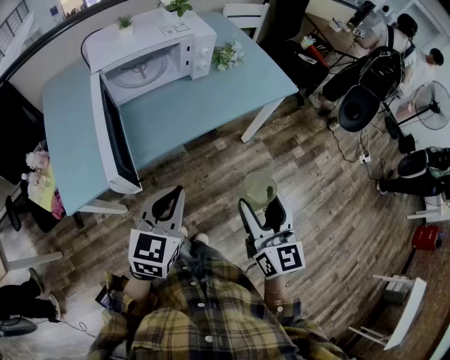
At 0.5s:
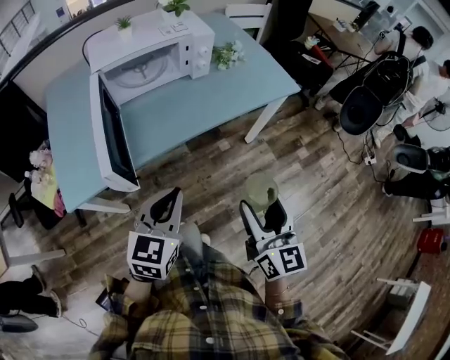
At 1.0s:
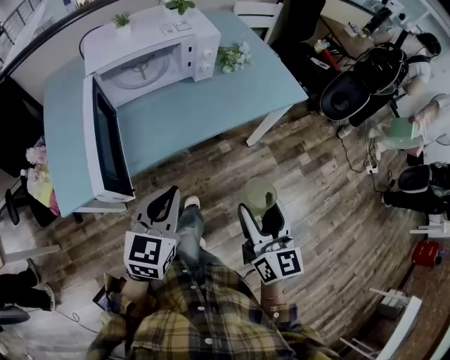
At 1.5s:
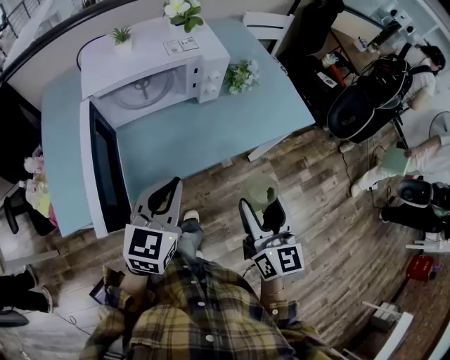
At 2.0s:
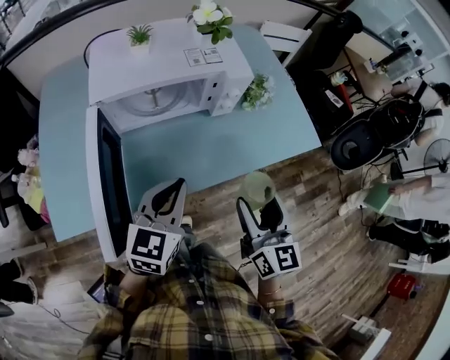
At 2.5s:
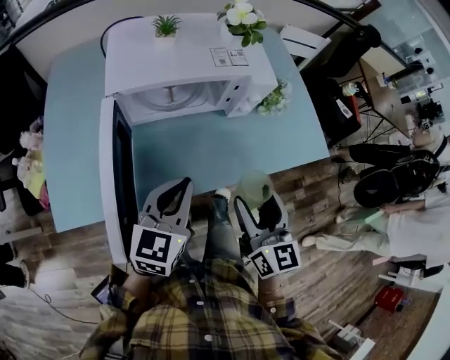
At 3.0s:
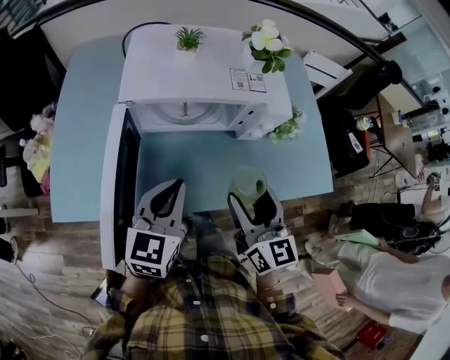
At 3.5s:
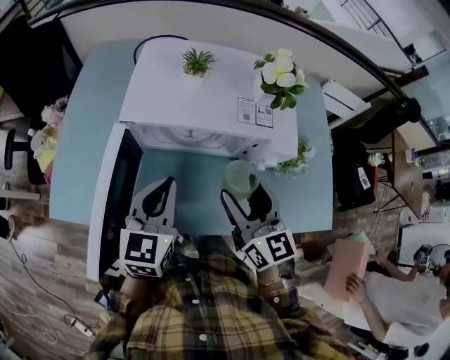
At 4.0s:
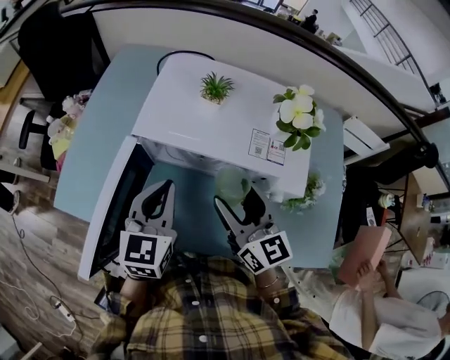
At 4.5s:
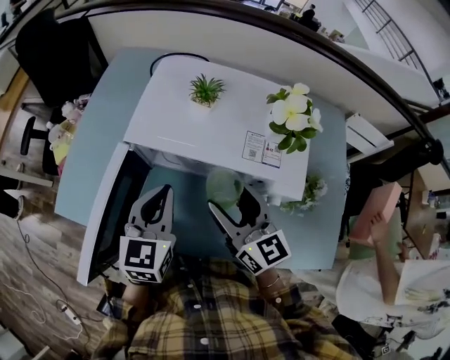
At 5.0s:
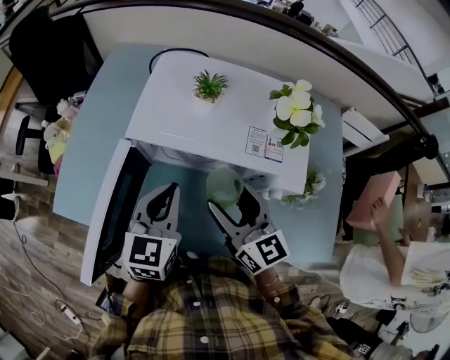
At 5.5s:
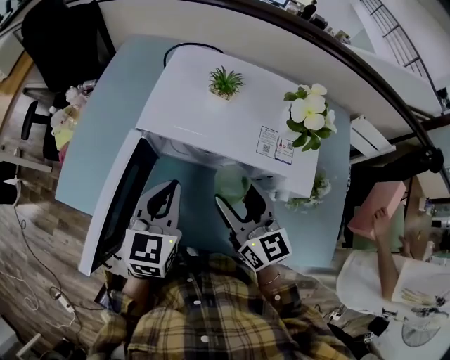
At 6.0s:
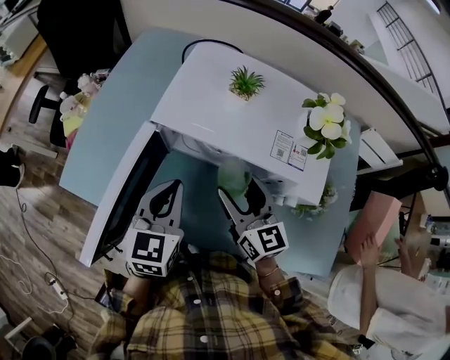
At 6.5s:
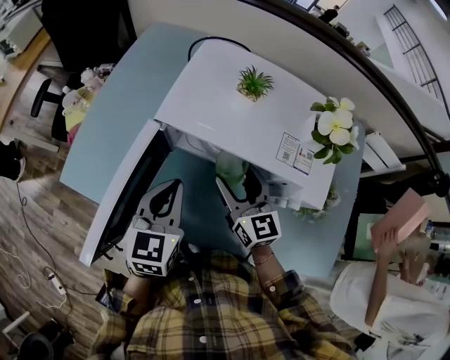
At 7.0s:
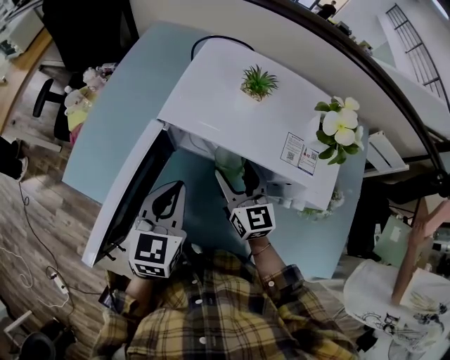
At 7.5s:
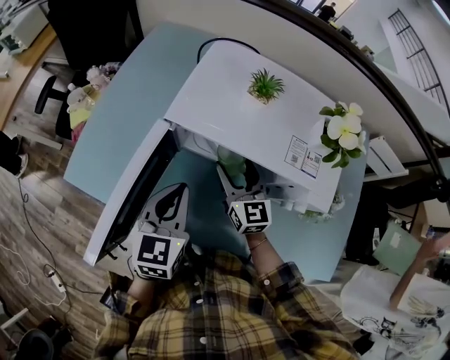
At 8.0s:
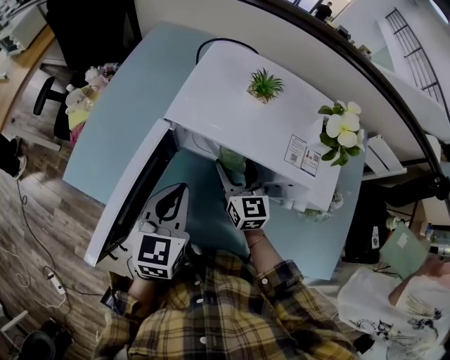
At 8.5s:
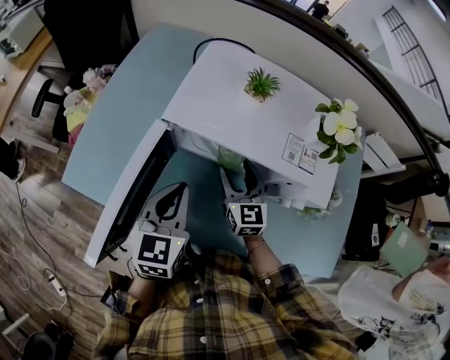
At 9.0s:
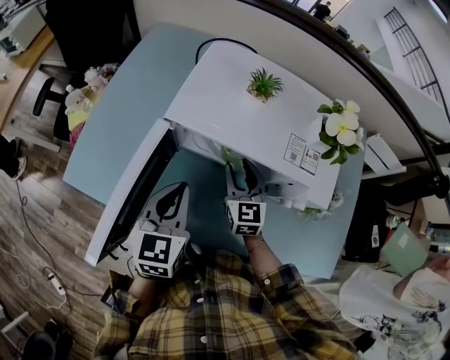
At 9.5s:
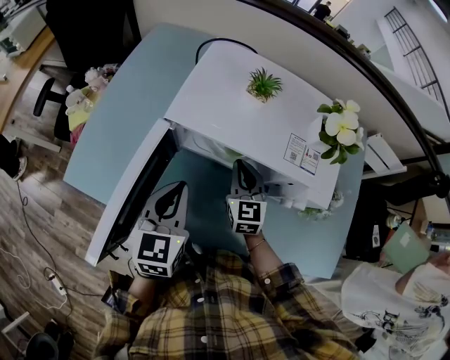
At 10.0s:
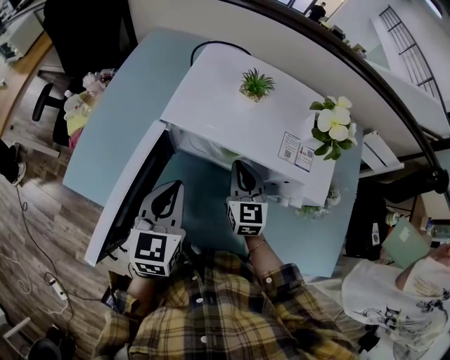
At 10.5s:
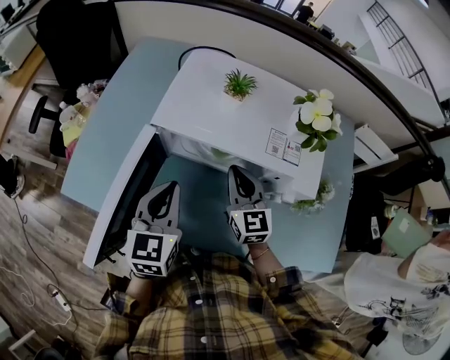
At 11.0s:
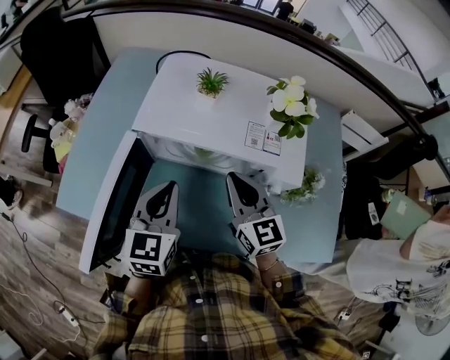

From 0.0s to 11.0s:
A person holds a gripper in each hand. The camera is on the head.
From 0.0s to 2.0s: The two grippers go approximately 20 cm forward.
From 2.0s to 3.5s: The right gripper moves roughly 20 cm, and rotates some 30 degrees; the left gripper moves about 15 cm, and changes its angle by roughly 30 degrees.
From 3.5s to 5.5s: The right gripper moves forward, roughly 5 cm.
From 5.5s to 7.5s: The right gripper travels downward and forward by some 15 cm.
From 7.5s to 9.0s: The right gripper closes up.
From 9.0s to 11.0s: The right gripper heads upward and backward, covering roughly 15 cm, and closes up.

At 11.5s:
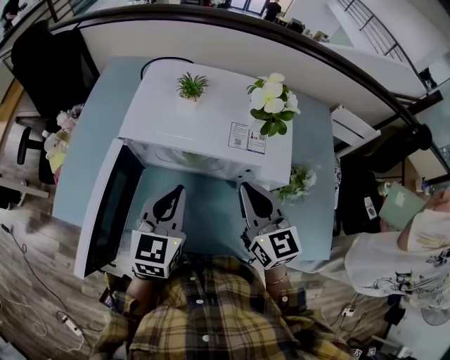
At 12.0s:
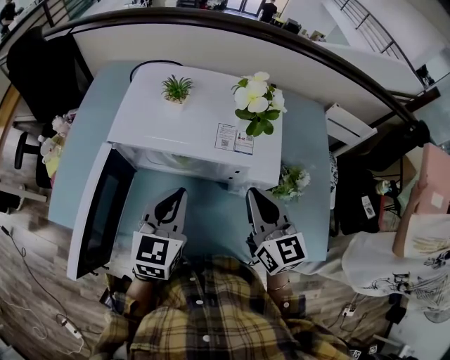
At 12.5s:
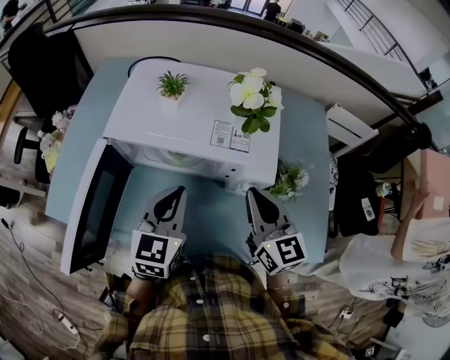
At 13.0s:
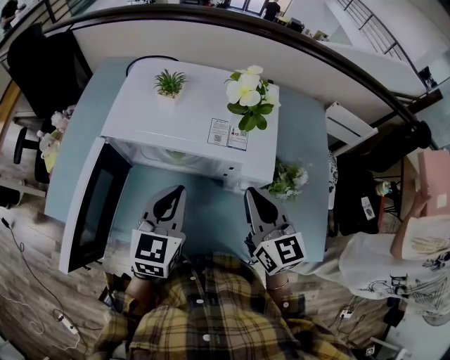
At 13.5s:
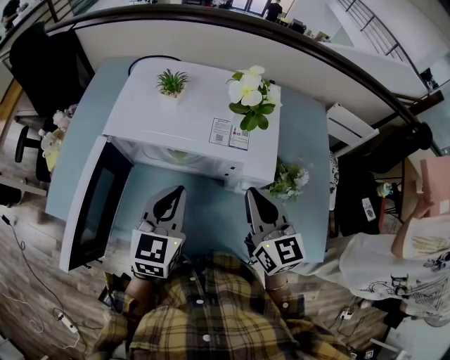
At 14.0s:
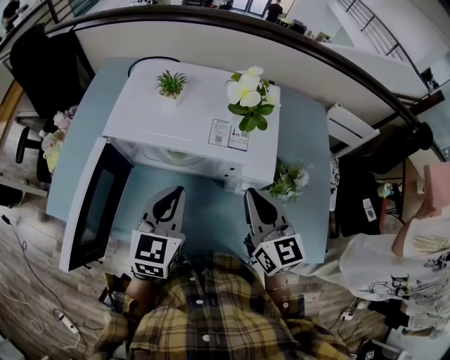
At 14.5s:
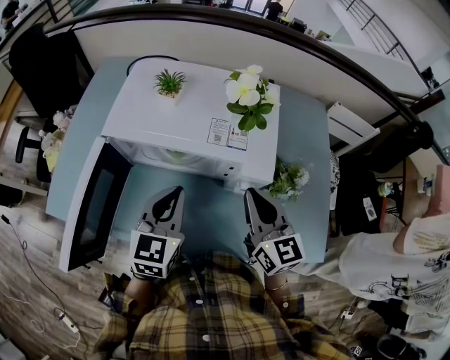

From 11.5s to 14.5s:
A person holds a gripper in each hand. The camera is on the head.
From 11.5s to 13.0s: Both grippers travel together to the right, about 5 cm.
From 13.0s to 14.5s: Both grippers stay put.

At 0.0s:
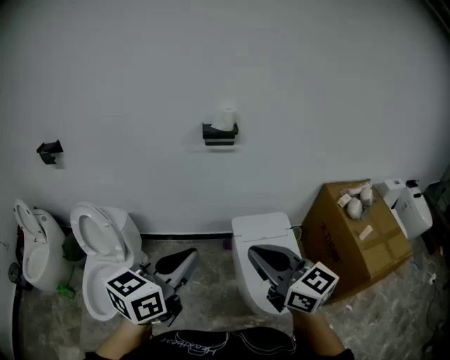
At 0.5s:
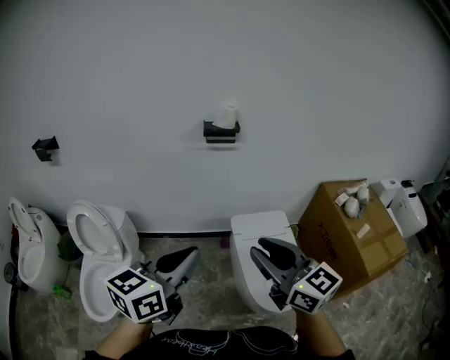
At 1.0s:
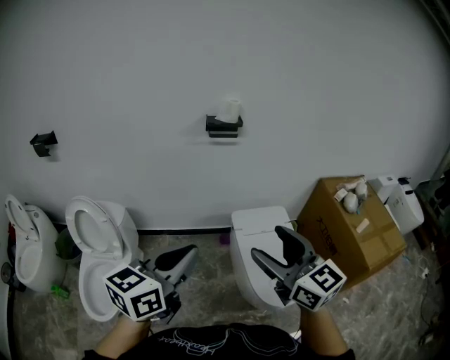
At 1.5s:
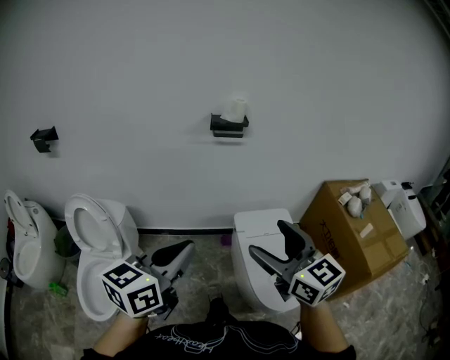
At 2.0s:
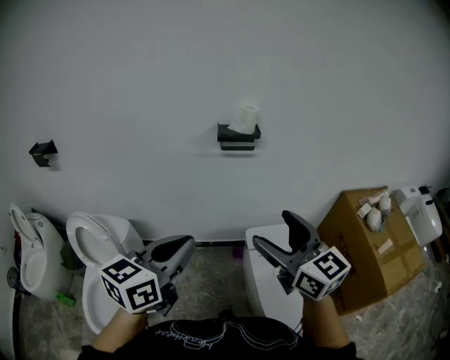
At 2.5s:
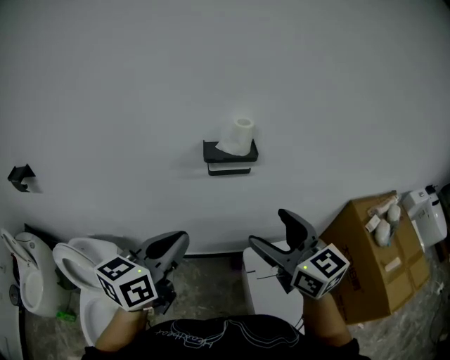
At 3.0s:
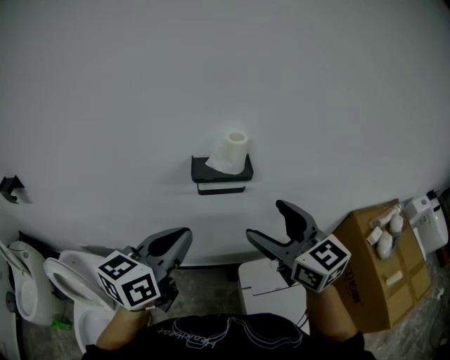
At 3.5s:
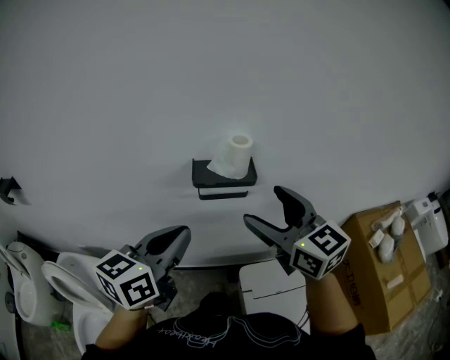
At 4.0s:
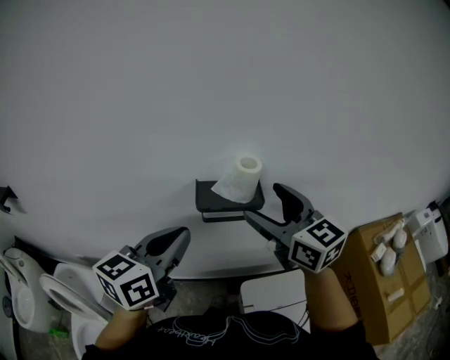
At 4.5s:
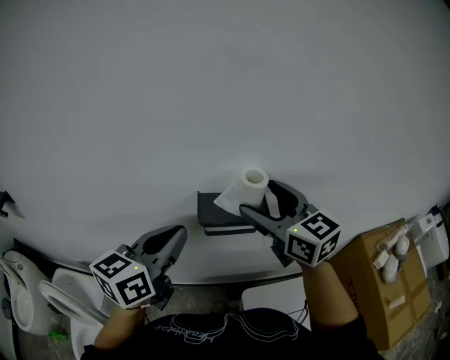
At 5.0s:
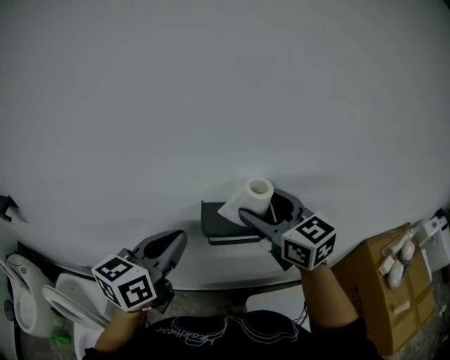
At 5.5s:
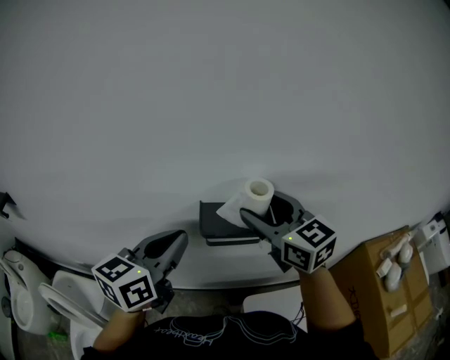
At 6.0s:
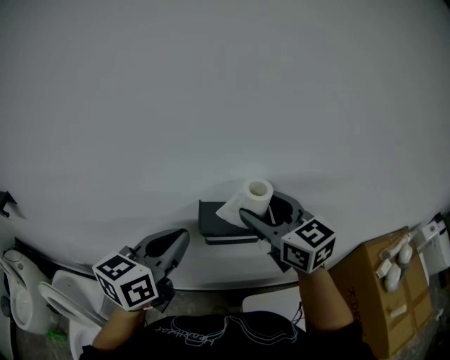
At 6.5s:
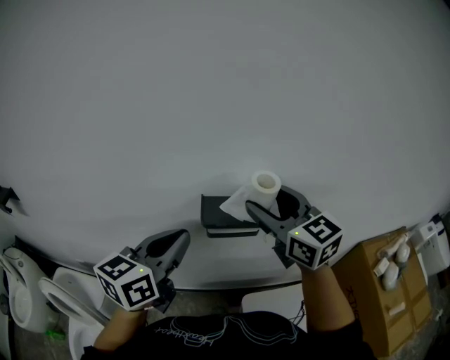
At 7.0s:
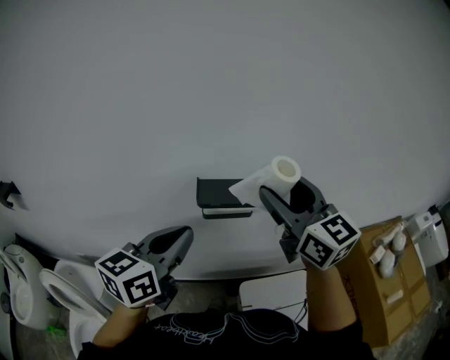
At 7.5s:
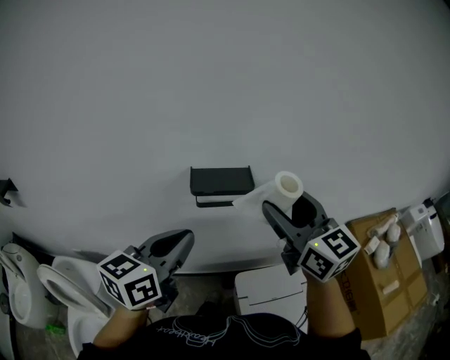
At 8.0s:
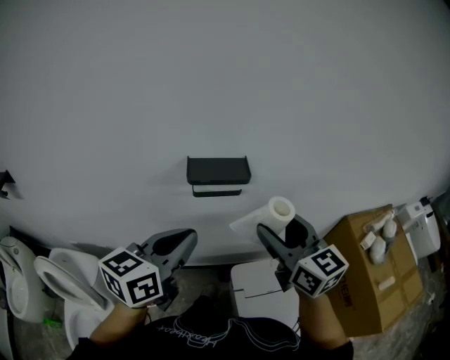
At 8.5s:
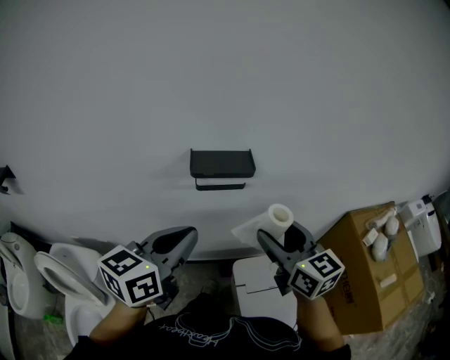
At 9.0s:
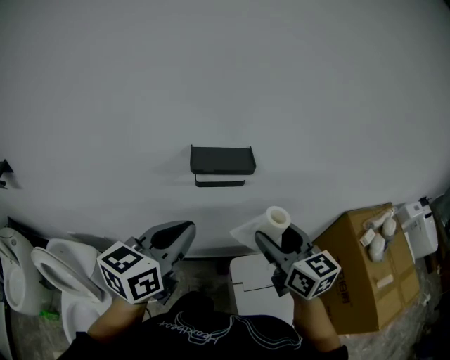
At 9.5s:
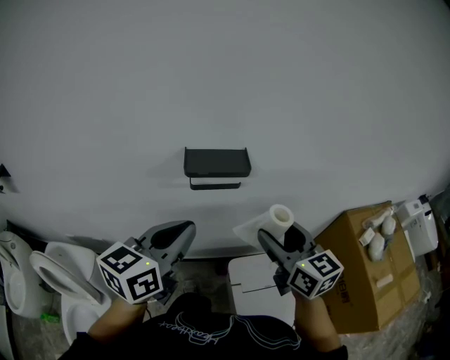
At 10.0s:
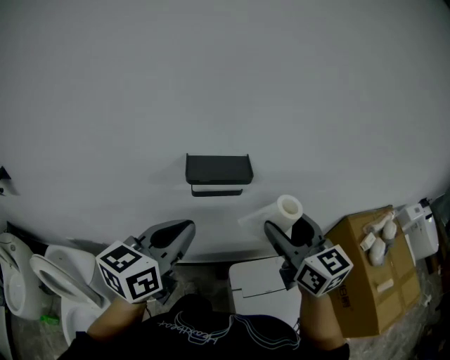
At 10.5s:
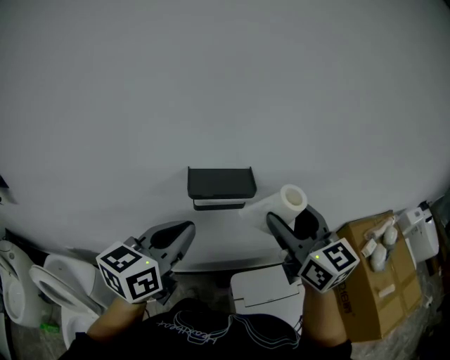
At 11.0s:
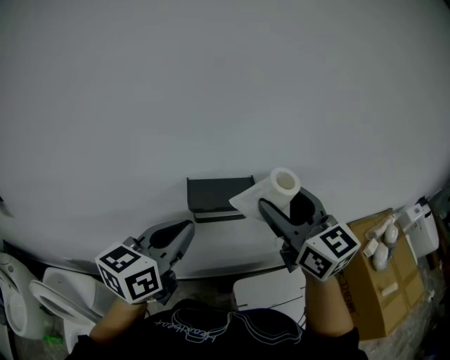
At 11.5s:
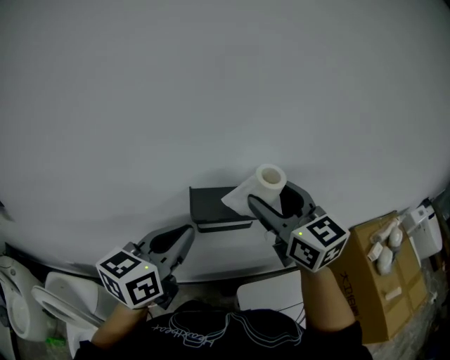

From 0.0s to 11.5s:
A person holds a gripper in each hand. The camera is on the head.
From 0.0s to 2.0s: The right gripper shifts approximately 20 cm forward, and opens its fingers; the left gripper is displaced forward and to the left by approximately 15 cm.
From 2.0s to 4.0s: The grippers both shift forward by some 40 cm.
From 4.0s to 6.0s: The two grippers go approximately 5 cm forward.
From 6.0s to 7.5s: The left gripper heads backward, covering approximately 10 cm. Meanwhile the right gripper heads backward and to the right, covering some 15 cm.
From 7.5s to 9.5s: The right gripper moves downward, approximately 10 cm.
From 9.5s to 11.5s: The right gripper moves forward, upward and to the left, about 20 cm; the left gripper shifts roughly 10 cm forward.

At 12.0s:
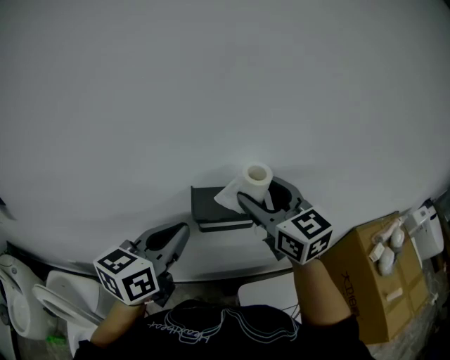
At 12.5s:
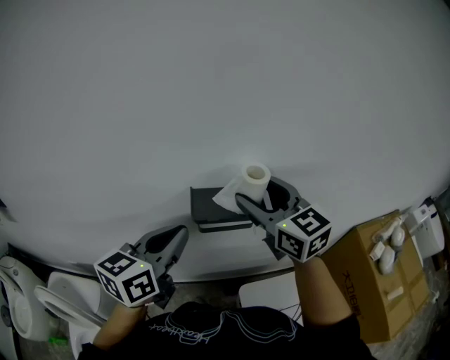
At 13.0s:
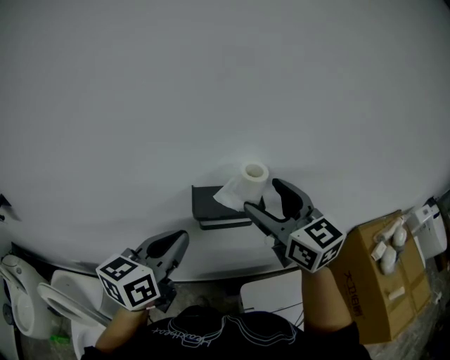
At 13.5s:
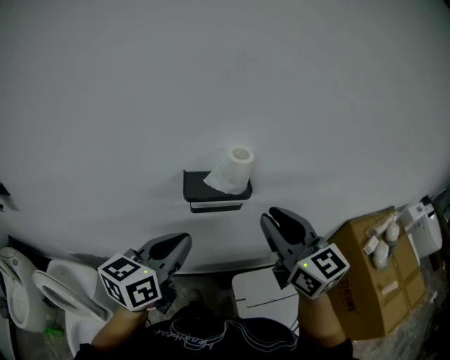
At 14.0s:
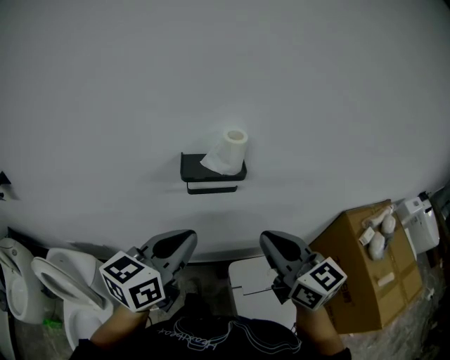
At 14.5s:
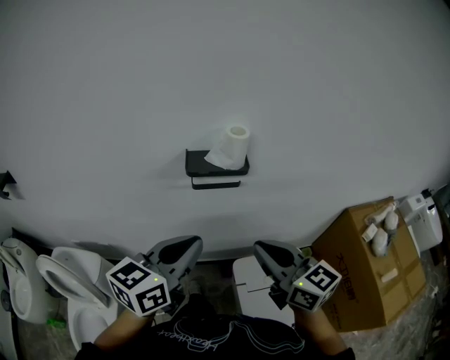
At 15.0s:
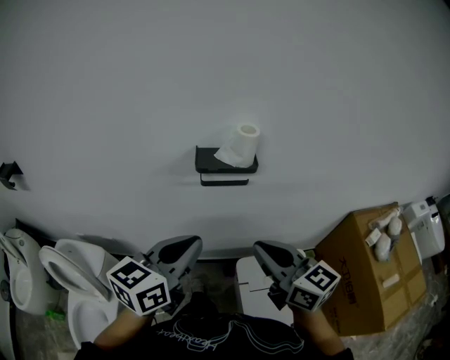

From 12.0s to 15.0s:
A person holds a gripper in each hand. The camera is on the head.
From 12.0s to 13.5s: The right gripper shifts some 15 cm backward and to the right, and closes up; the left gripper moves backward, some 10 cm.
From 13.5s to 15.0s: The left gripper heads backward, covering approximately 10 cm. The right gripper is displaced backward and downward by some 15 cm.
